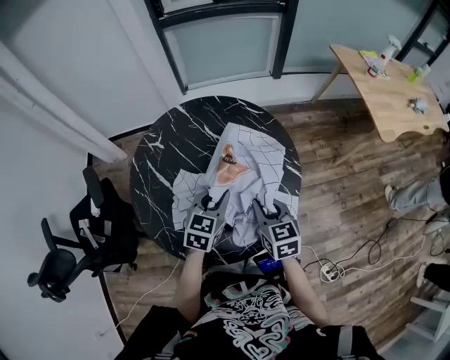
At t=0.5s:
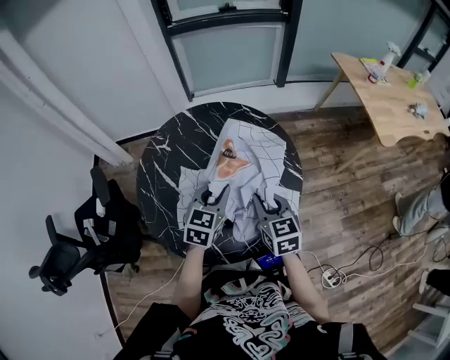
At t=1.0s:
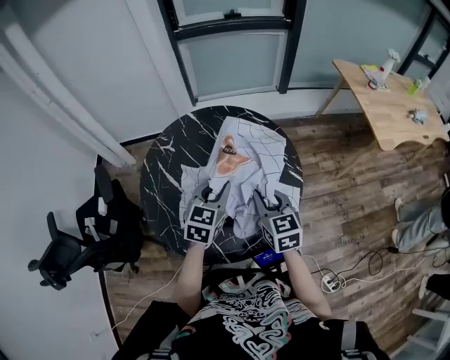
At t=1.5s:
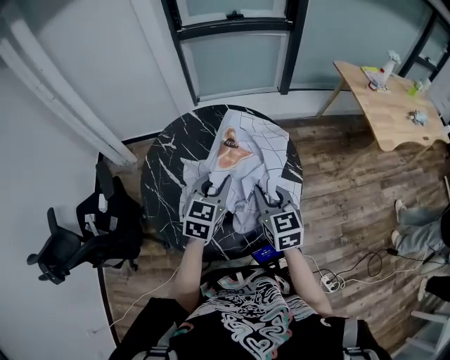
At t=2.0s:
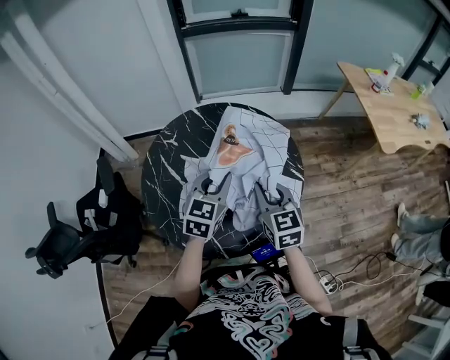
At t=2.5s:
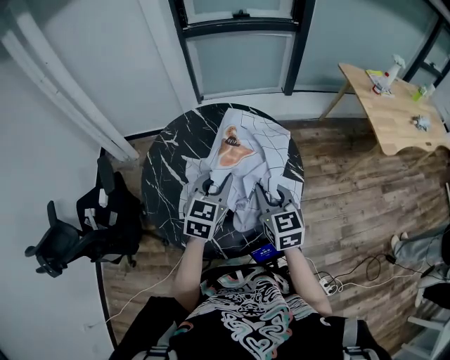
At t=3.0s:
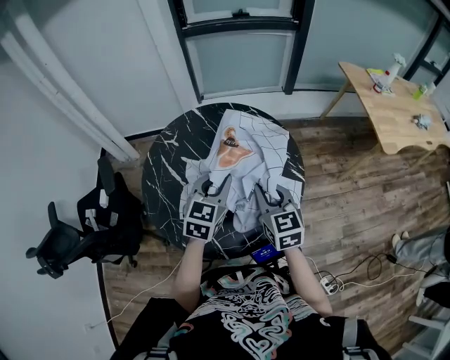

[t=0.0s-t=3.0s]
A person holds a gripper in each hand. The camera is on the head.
t=0.0s to t=1.5s: Both grippers travel together upward, about 10 cm.
t=1.5s to t=3.0s: Neither gripper changes place.

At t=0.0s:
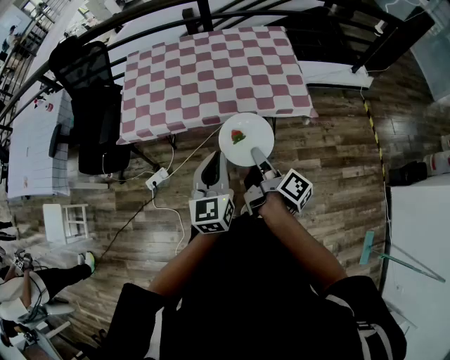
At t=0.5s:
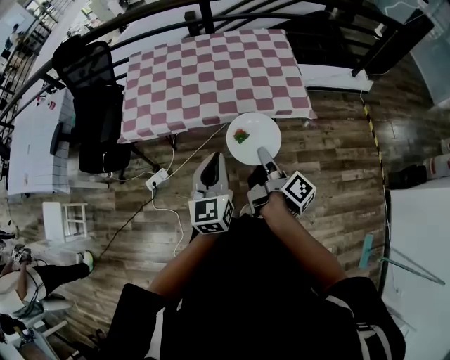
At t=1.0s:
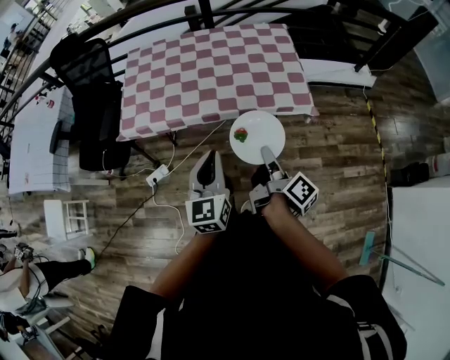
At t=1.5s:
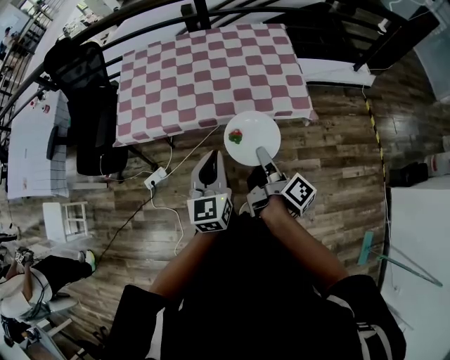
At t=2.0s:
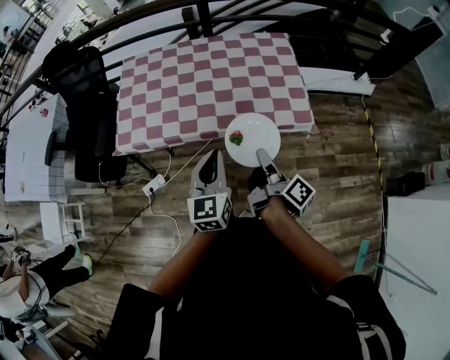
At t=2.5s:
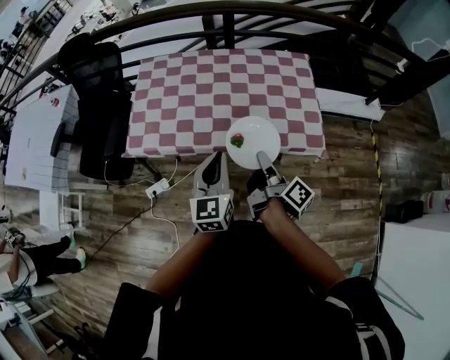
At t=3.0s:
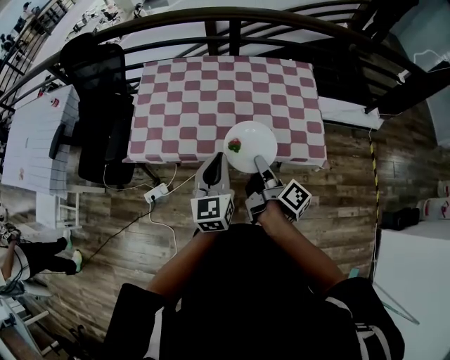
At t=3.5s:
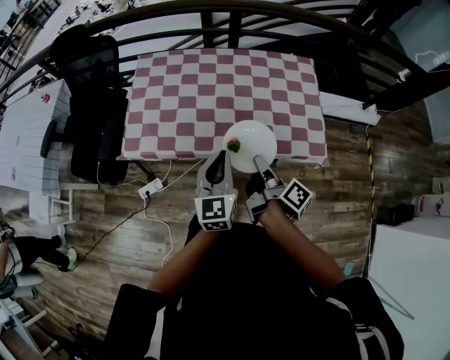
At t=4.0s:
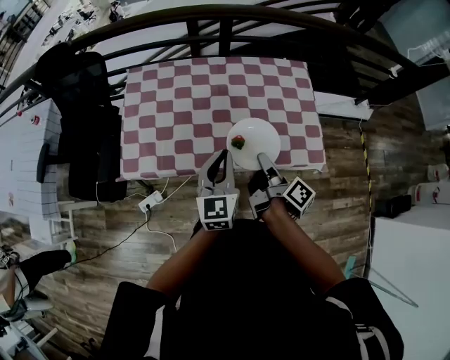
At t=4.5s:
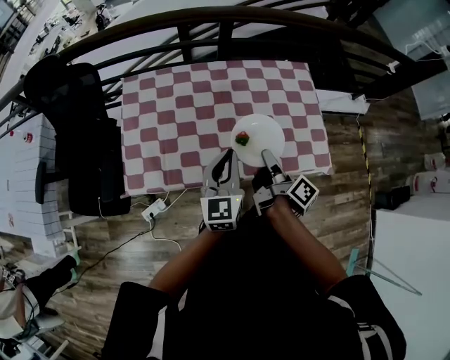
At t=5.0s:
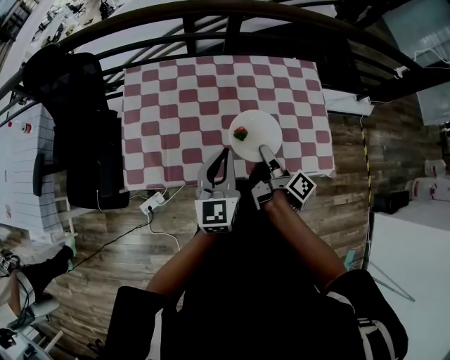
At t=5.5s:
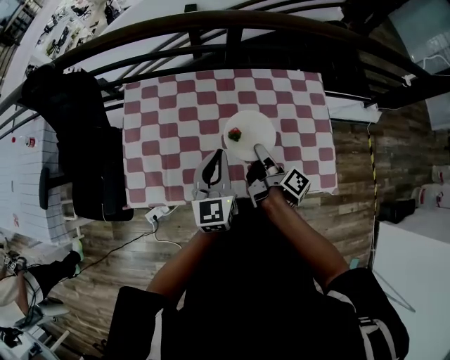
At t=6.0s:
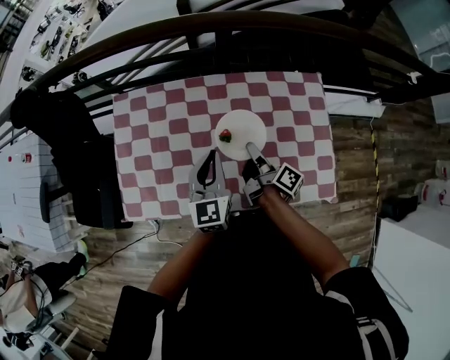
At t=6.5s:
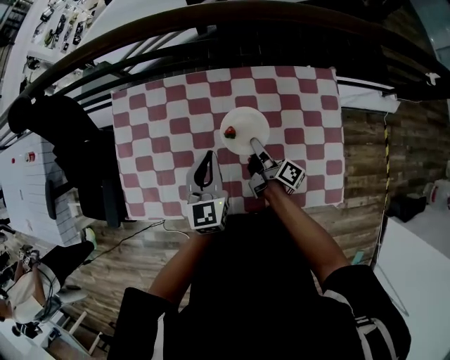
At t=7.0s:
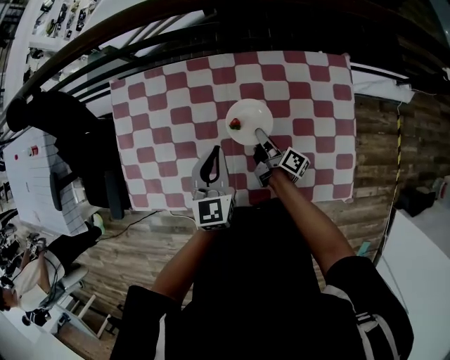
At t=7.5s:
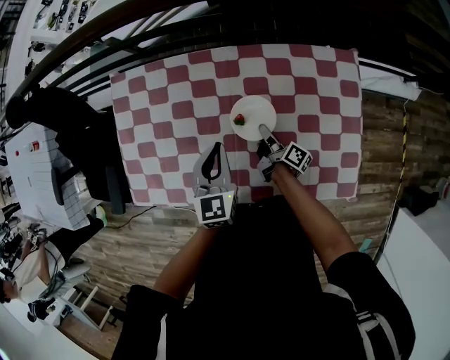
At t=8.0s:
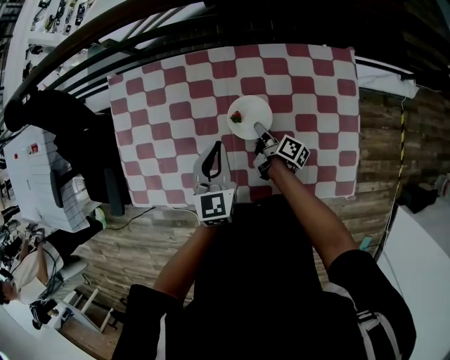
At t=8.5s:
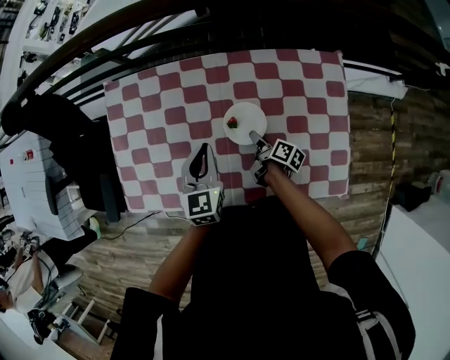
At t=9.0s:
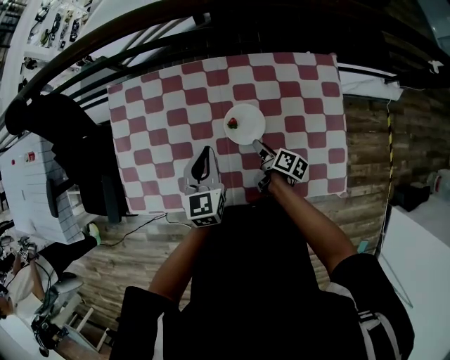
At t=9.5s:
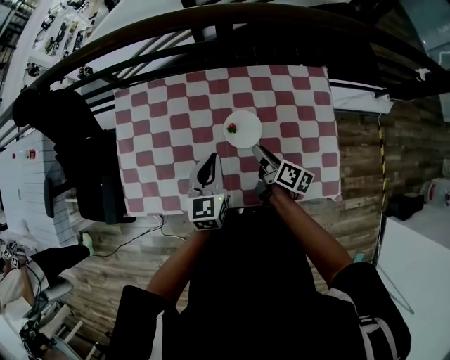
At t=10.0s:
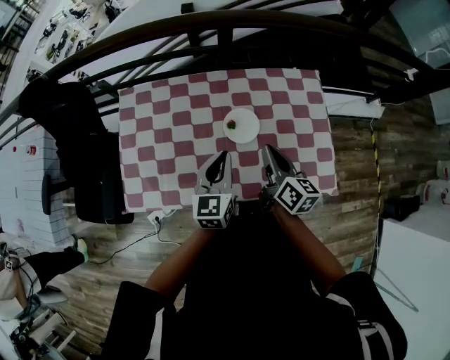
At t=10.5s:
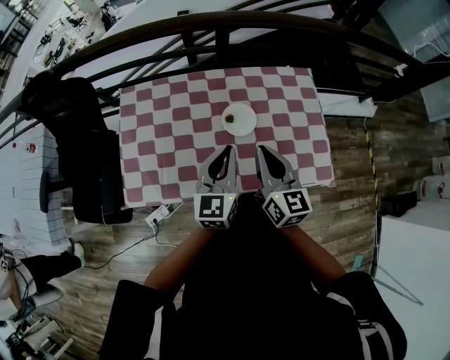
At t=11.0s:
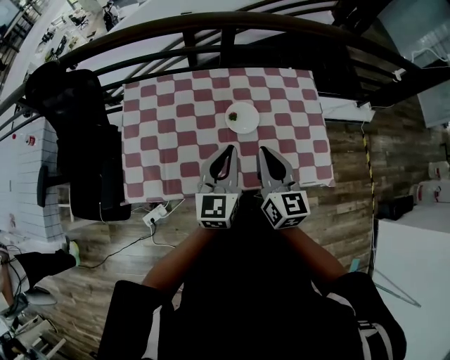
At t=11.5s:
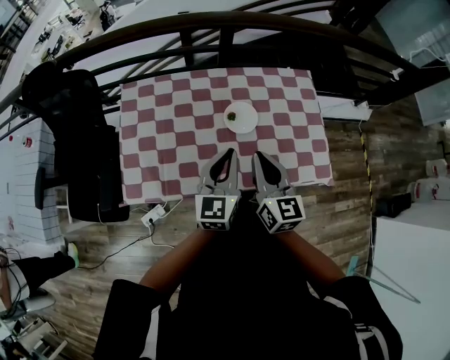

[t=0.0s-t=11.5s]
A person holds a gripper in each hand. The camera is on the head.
t=0.0s to t=2.0s: The left gripper ends up roughly 10 cm from where it was.
t=2.0s to t=4.0s: The left gripper ends up approximately 20 cm from where it was.
t=4.0s to t=6.0s: The left gripper moves approximately 25 cm.
t=6.0s to t=7.5s: The left gripper moves downward, roughly 10 cm.
t=7.5s to t=9.5s: The left gripper ends up approximately 5 cm from where it was.
t=9.5s to t=11.5s: The left gripper moves some 15 cm.

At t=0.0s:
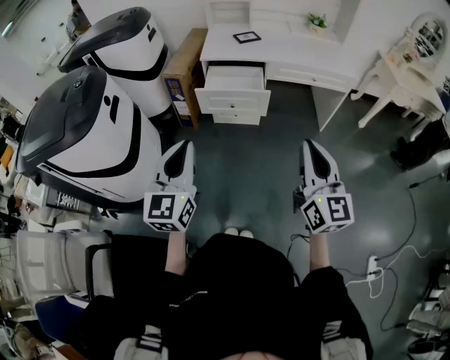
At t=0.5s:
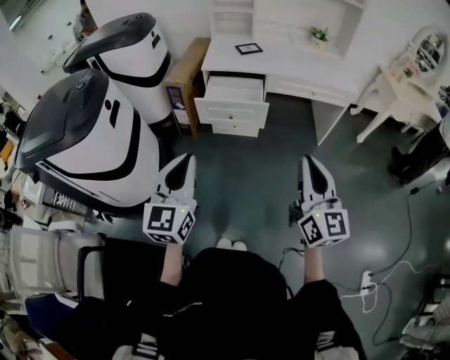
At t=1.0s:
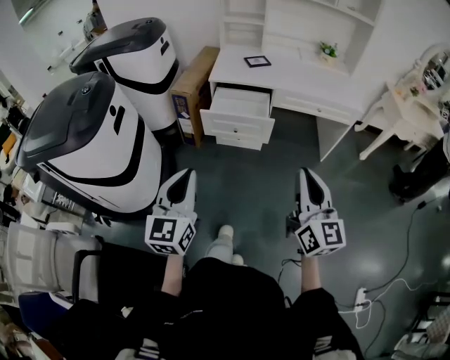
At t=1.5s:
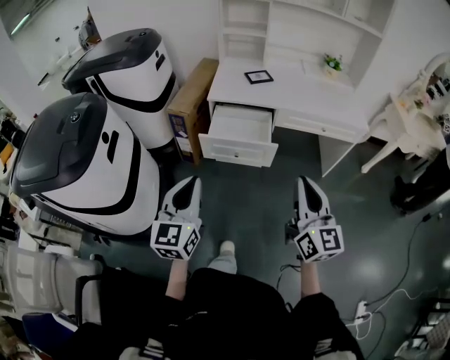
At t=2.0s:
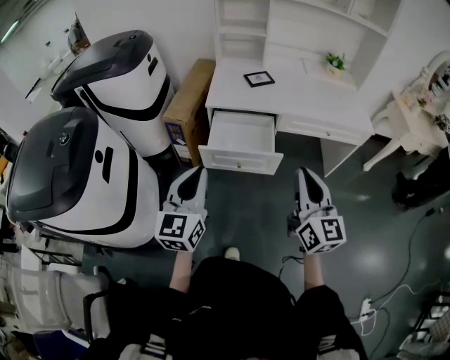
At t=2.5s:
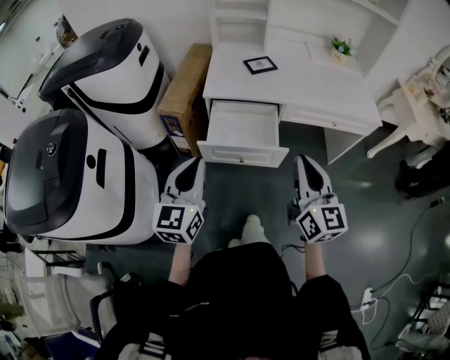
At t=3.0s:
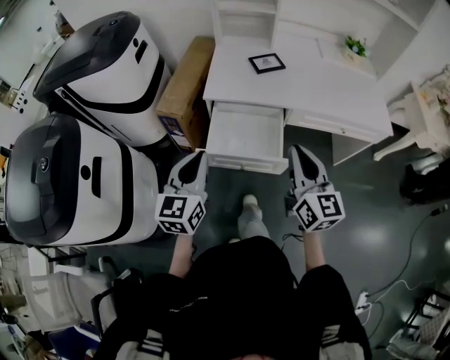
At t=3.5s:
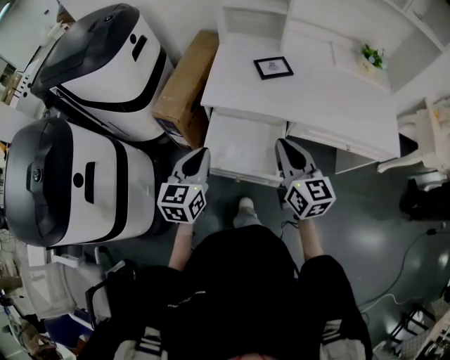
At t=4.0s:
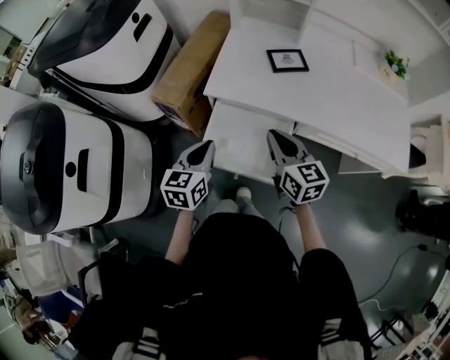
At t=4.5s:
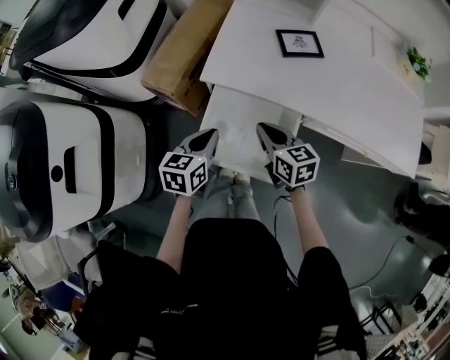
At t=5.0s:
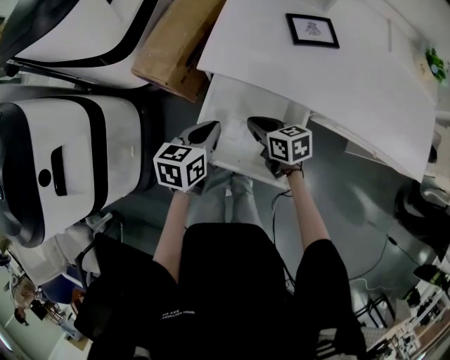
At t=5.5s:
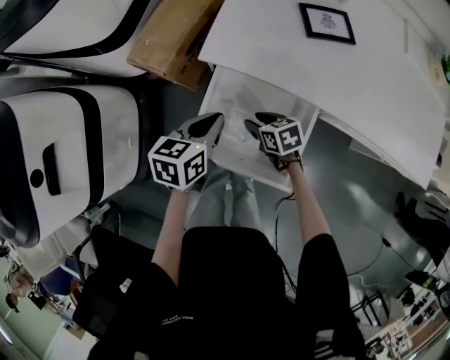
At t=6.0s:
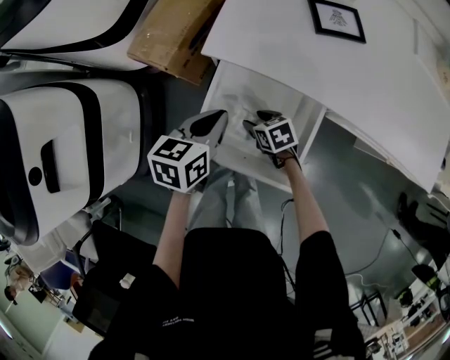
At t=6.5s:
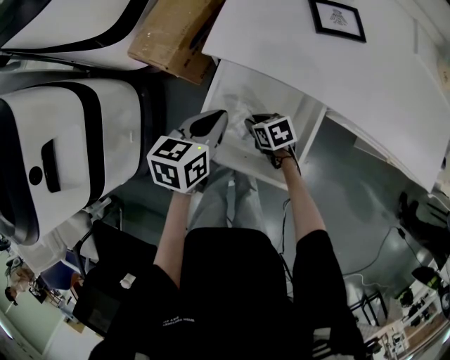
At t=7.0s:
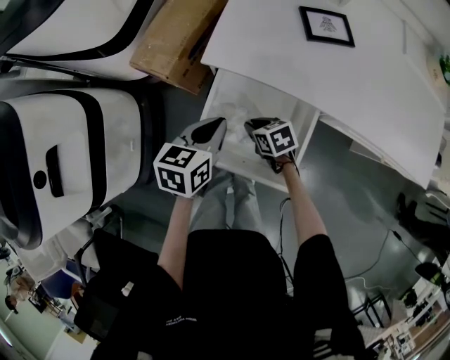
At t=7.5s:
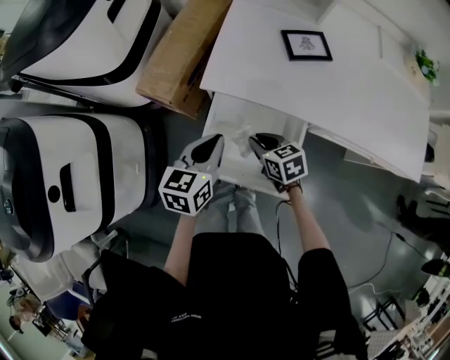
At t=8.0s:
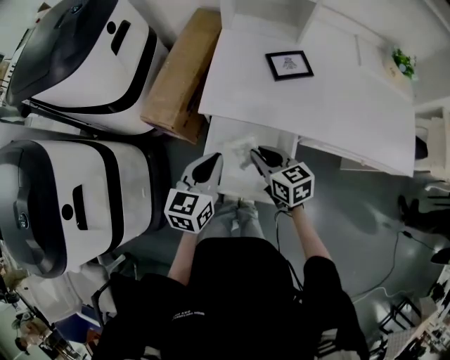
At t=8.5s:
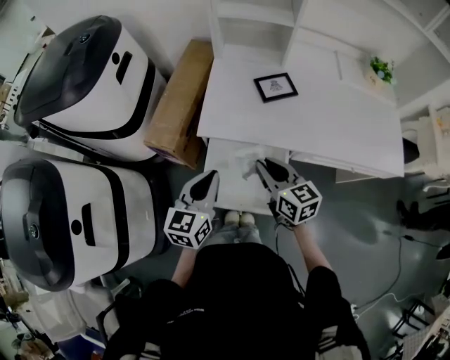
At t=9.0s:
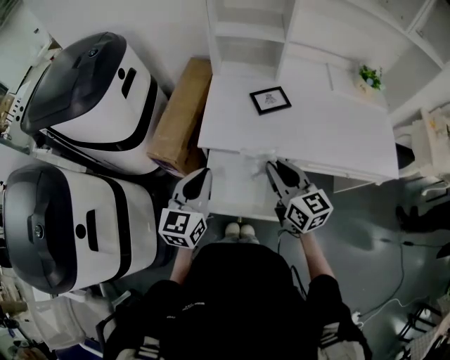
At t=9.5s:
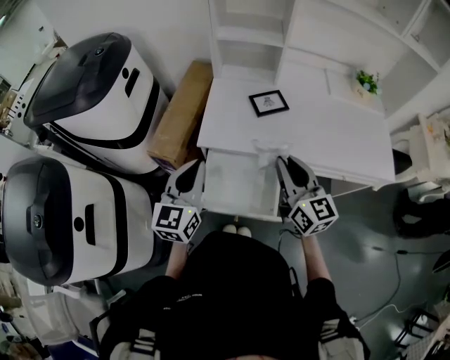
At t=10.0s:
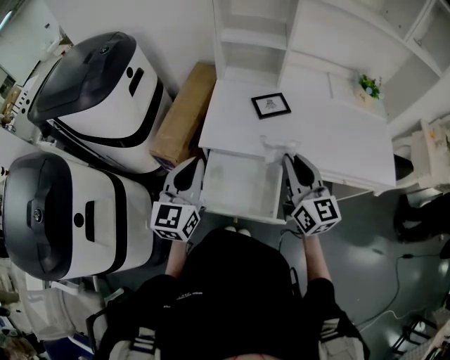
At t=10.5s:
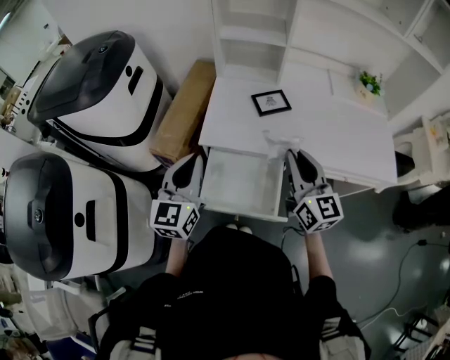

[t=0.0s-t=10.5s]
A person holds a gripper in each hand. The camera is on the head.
t=0.0s to t=2.0s: Both grippers travel together forward, about 25 cm.
t=2.0s to t=4.0s: Both grippers travel together forward and downward, approximately 35 cm. The left gripper rotates approximately 30 degrees. Meanwhile the right gripper changes its angle by approximately 40 degrees.
t=4.0s to t=6.5s: The left gripper travels downward and forward by some 15 cm, while the right gripper travels downward by approximately 35 cm, angles its fingers downward, by roughly 40 degrees, and opens and closes again.
t=6.5s to t=8.5s: The left gripper goes some 15 cm upward, and turns by some 30 degrees, while the right gripper shifts approximately 35 cm upward, and tilts its fingers some 40 degrees upward.
t=8.5s to t=10.5s: The left gripper goes roughly 10 cm upward; the right gripper shifts approximately 15 cm upward and to the right, and swivels some 30 degrees.

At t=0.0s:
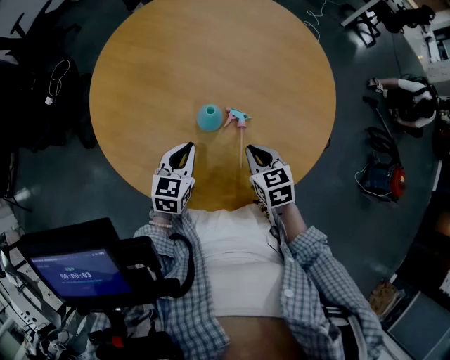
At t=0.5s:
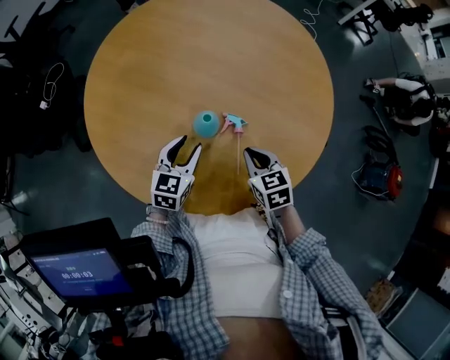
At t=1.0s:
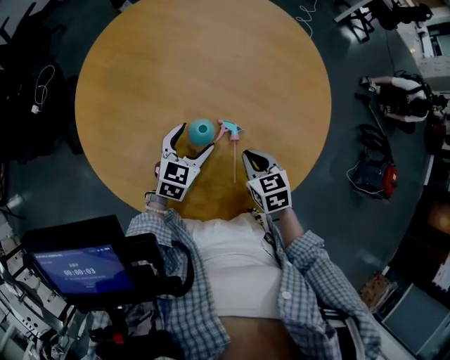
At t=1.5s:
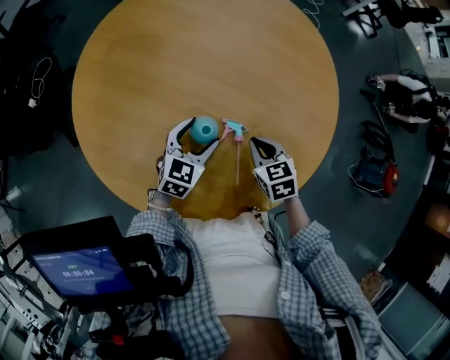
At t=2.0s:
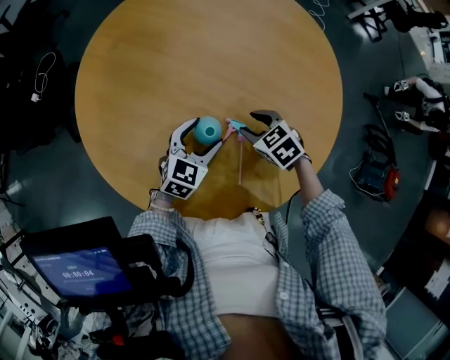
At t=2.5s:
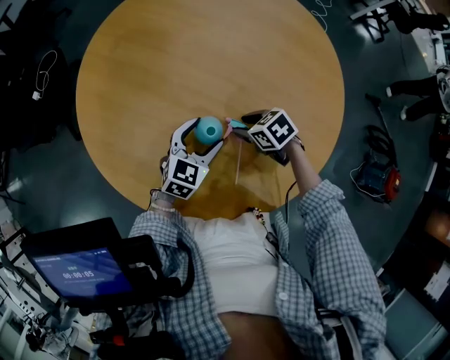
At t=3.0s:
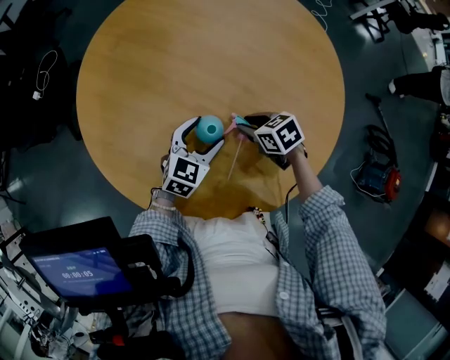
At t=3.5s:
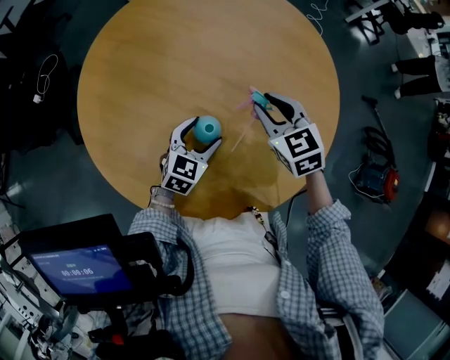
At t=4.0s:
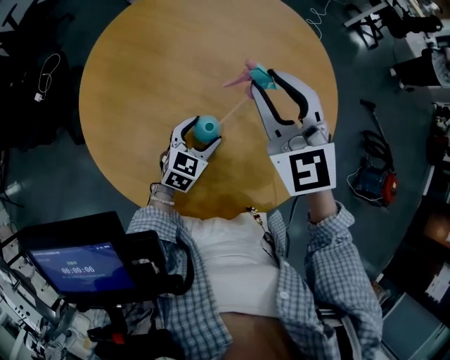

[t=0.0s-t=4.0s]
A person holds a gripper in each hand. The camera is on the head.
t=0.0s to t=2.0s: The right gripper travels forward by some 10 cm, changes its angle by roughly 30 degrees, and opens its fingers; the left gripper travels forward and to the right by some 10 cm, and opens.
t=2.0s to t=4.0s: The right gripper travels upward by about 25 cm, and tilts its fingers about 40 degrees upward.
